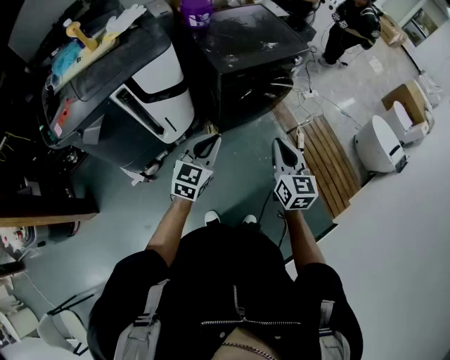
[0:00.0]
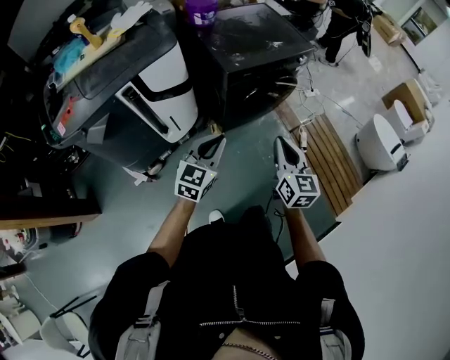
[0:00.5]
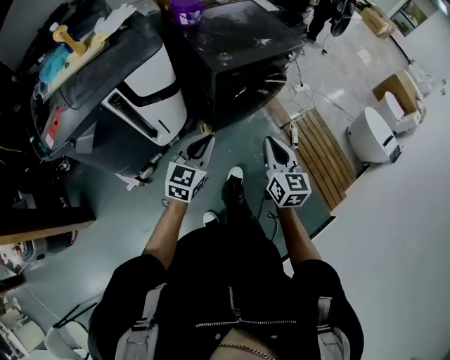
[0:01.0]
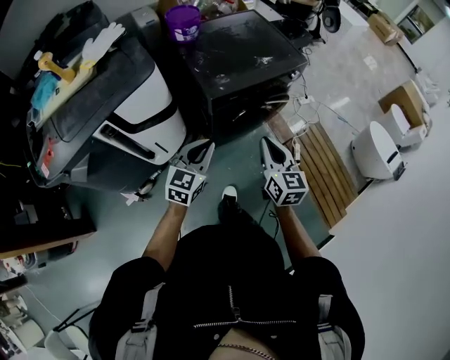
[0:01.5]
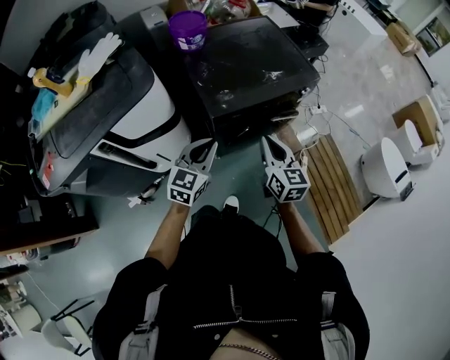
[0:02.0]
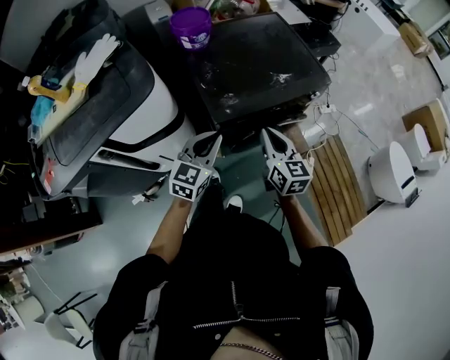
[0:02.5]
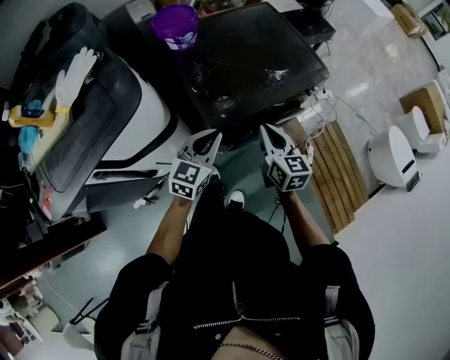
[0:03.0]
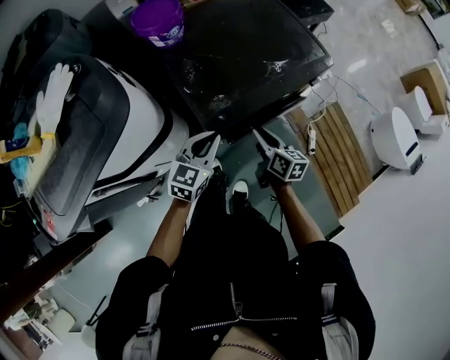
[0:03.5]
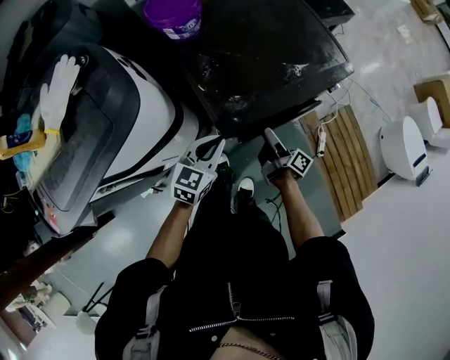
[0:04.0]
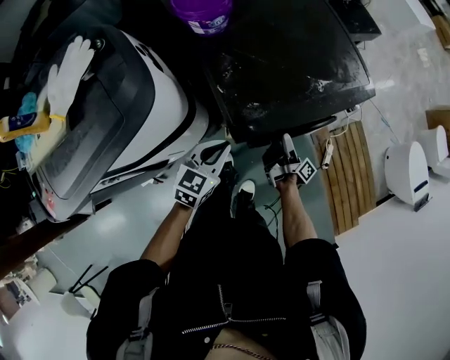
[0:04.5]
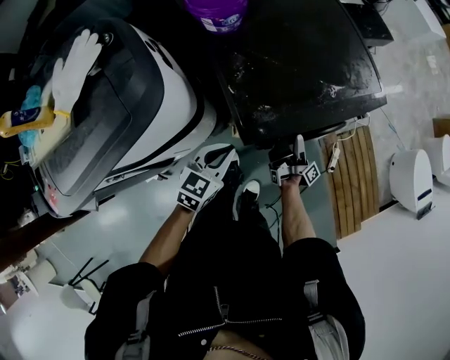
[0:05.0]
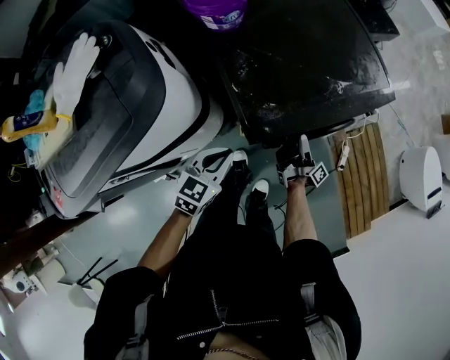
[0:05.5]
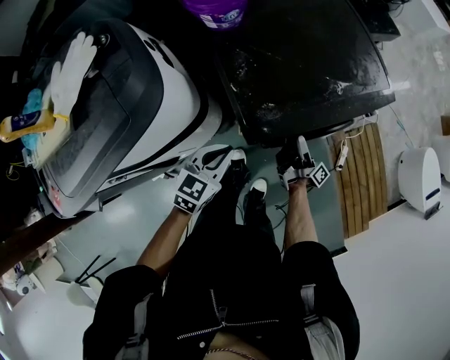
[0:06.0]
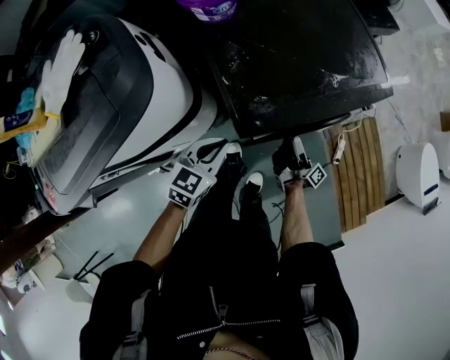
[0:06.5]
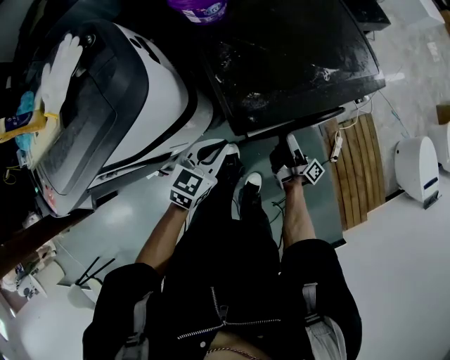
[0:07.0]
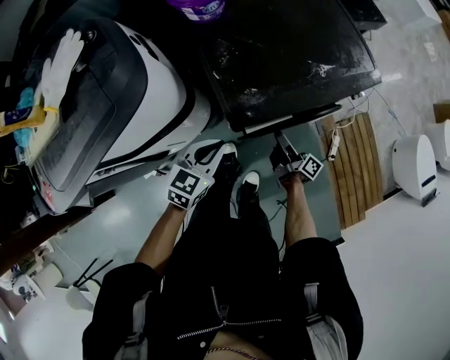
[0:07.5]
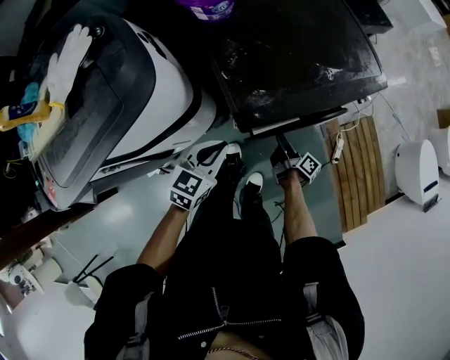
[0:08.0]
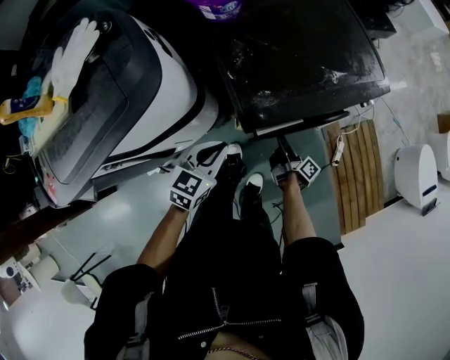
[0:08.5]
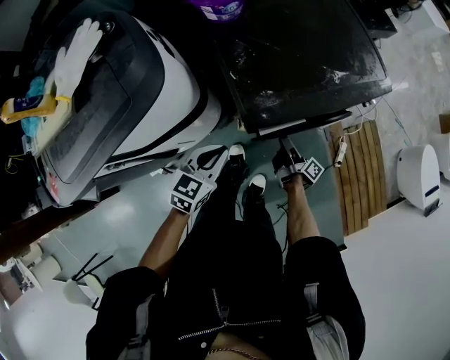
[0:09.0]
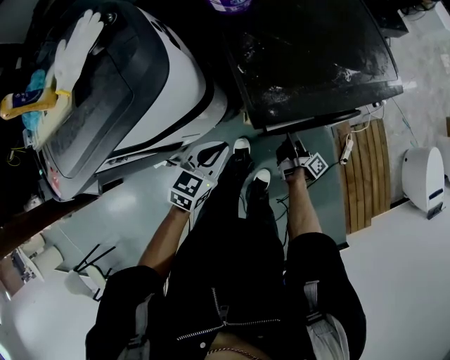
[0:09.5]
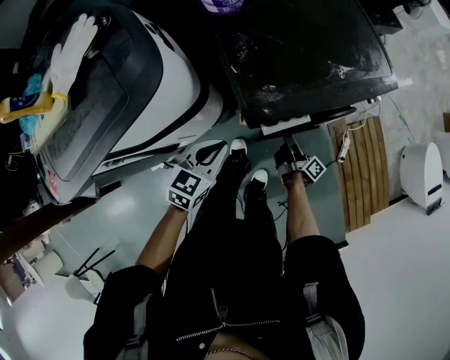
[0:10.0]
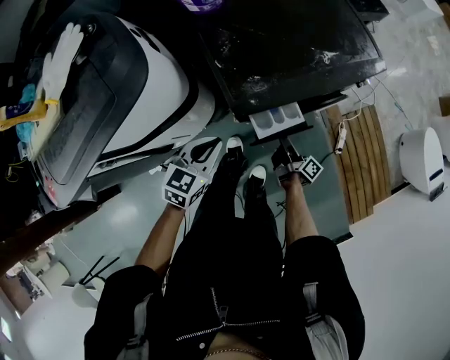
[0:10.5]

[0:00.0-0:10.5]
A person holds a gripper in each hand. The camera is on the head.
0:00.0 to 0:02.0: Both grippers travel together forward, roughly 25 cm.
0:02.0 to 0:04.0: The right gripper heads downward and forward, covering approximately 25 cm, rolls clockwise, seen from behind, by about 70 degrees, and opens its fingers; the left gripper shifts about 15 cm forward and downward.
0:04.0 to 0:06.5: The right gripper changes its angle by approximately 20 degrees.
0:06.5 to 0:08.5: The right gripper heads downward, covering approximately 5 cm, rotates some 30 degrees, and closes its fingers.
0:08.5 to 0:10.5: The grippers stay close to where they were, moving slightly.

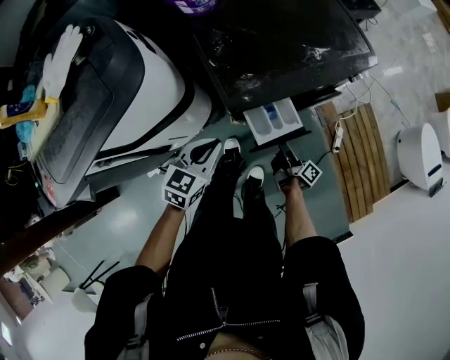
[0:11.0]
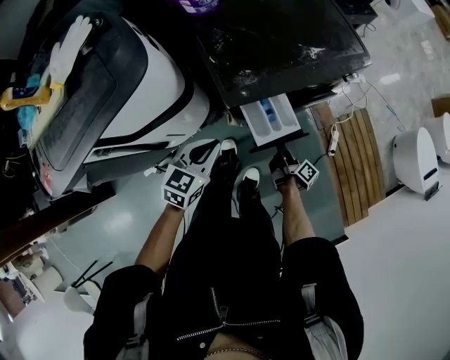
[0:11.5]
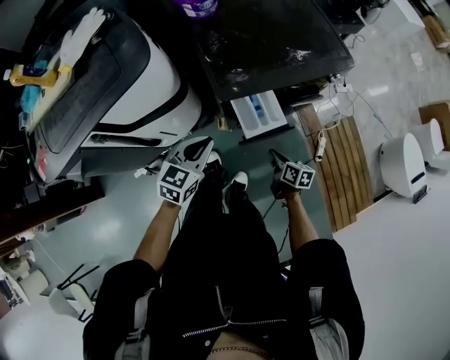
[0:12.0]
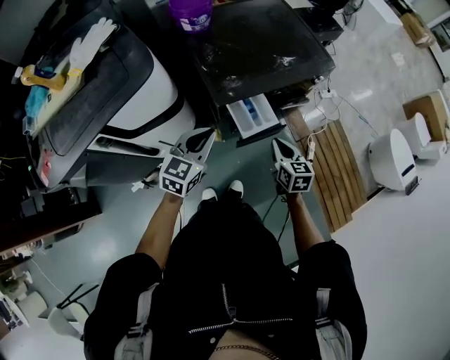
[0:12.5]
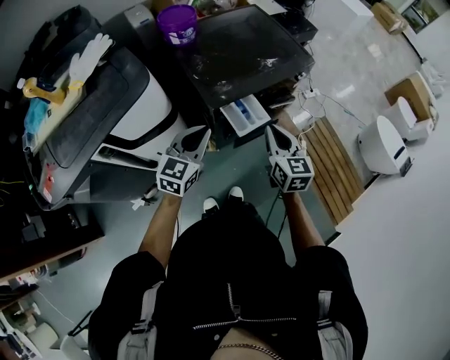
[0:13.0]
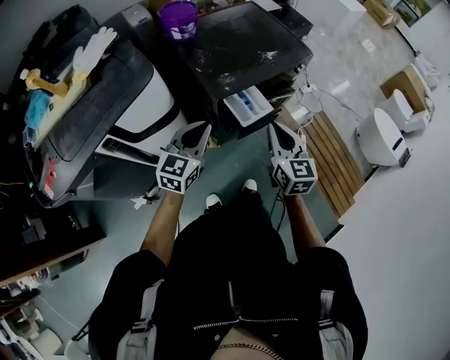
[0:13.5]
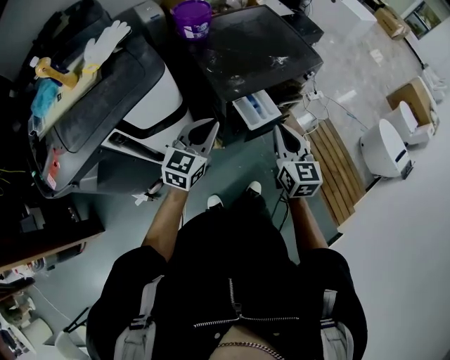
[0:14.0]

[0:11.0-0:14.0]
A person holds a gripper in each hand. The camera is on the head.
0:11.0 to 0:12.5: The left gripper travels upward by approximately 10 cm, while the right gripper goes some 20 cm upward, and rotates around the line of its fingers by about 70 degrees, counterclockwise from behind.
0:12.5 to 0:14.0: The left gripper is displaced upward by approximately 5 cm, while the right gripper moves upward, approximately 15 cm, and turns by approximately 20 degrees.

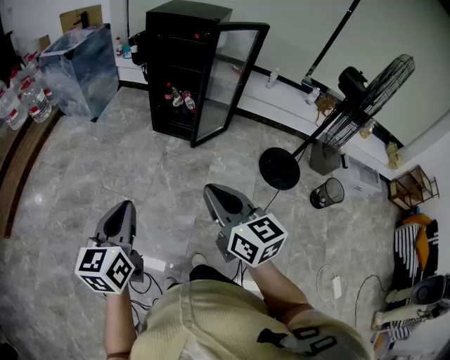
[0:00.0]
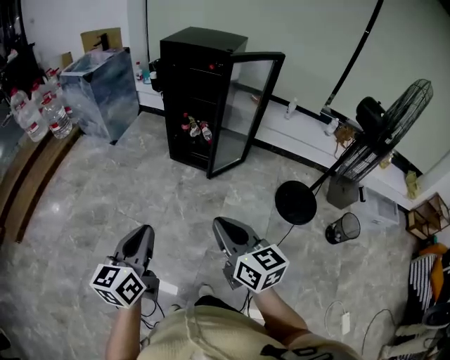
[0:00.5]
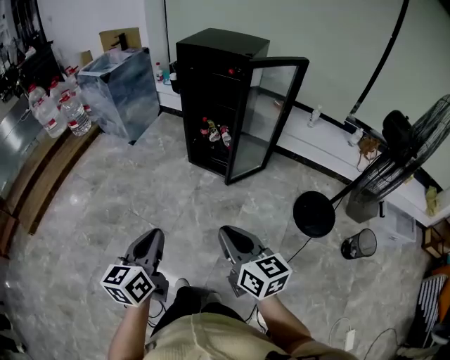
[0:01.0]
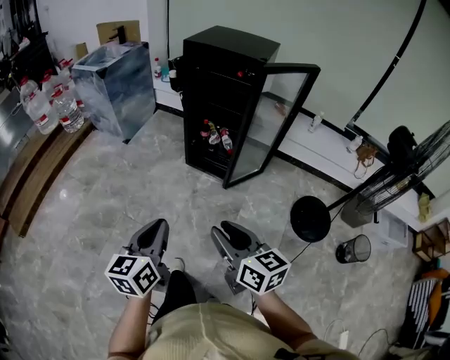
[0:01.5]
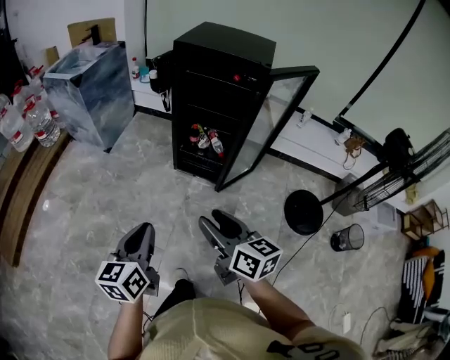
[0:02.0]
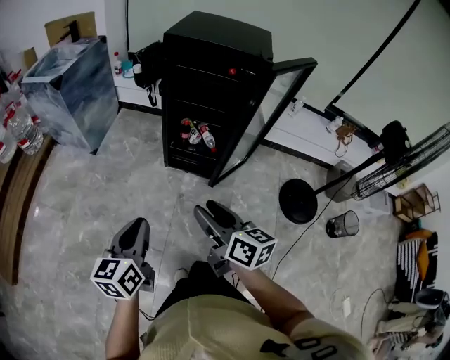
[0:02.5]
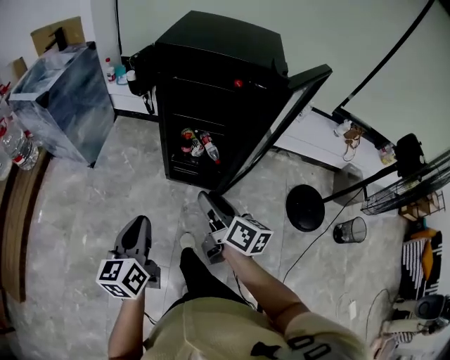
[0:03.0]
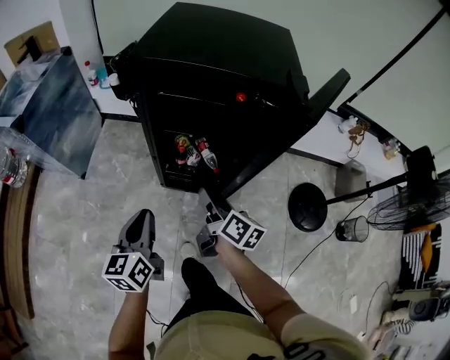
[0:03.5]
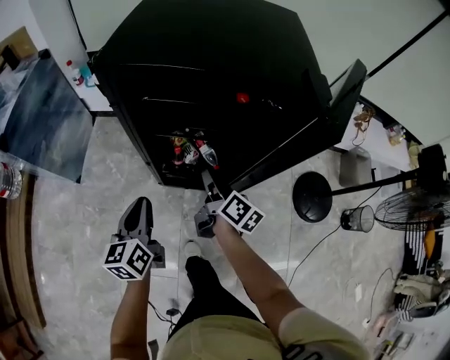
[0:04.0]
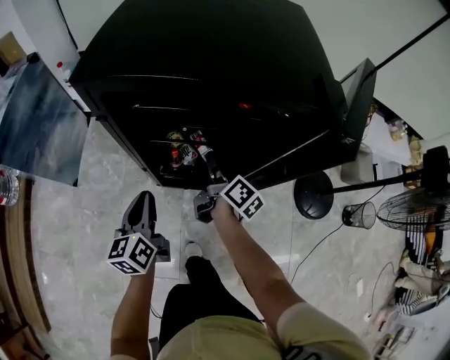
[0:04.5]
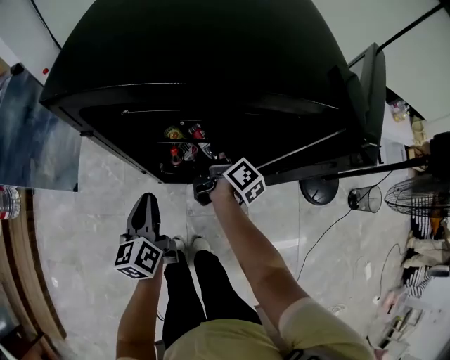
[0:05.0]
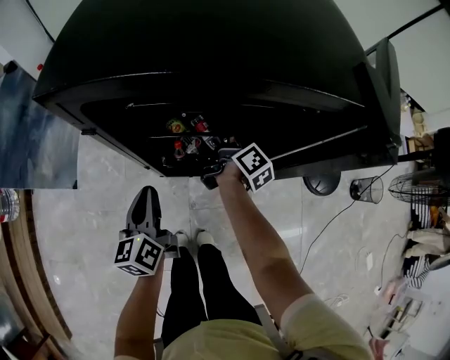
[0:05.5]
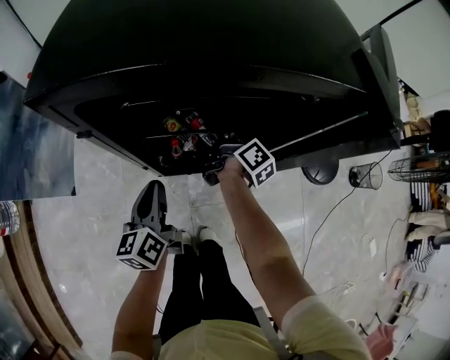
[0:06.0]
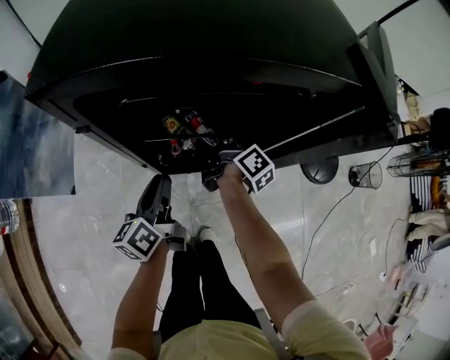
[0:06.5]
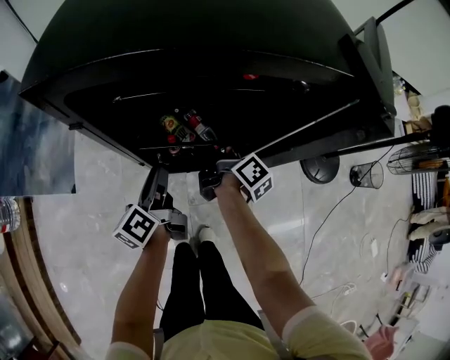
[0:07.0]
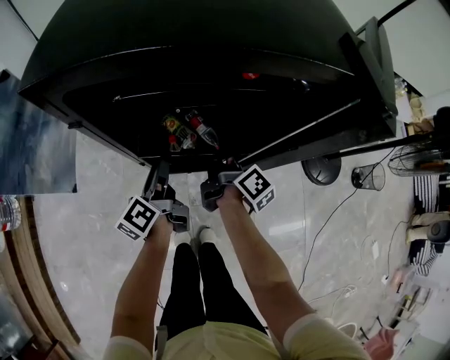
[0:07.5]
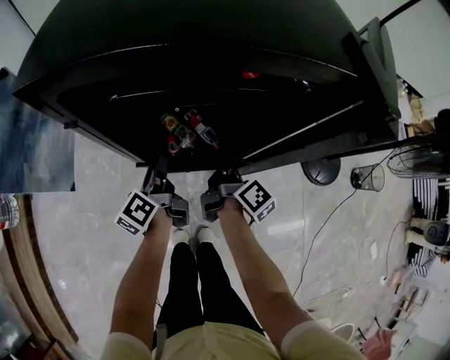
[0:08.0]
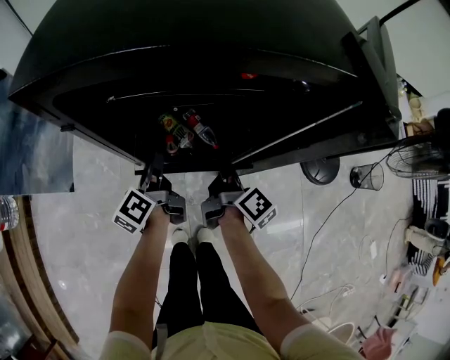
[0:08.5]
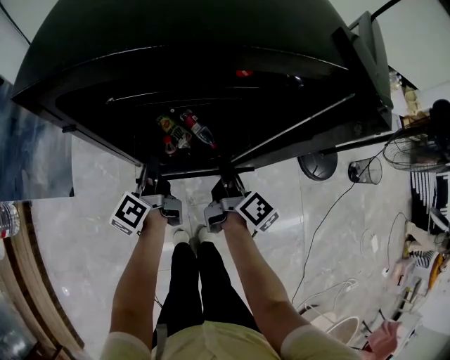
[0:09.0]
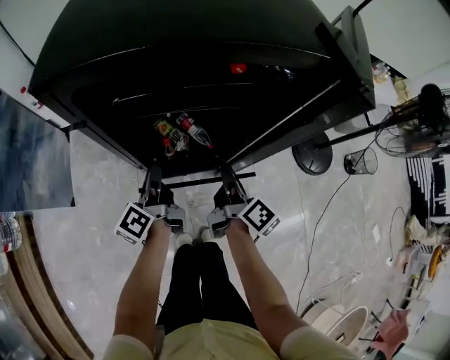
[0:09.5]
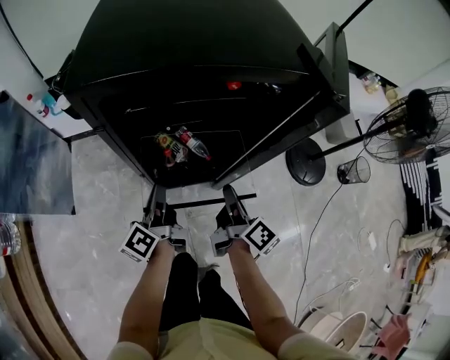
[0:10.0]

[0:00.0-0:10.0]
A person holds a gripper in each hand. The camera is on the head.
0:00.0 to 0:02.0: Both grippers travel together forward, approximately 30 cm. The right gripper opens up.
0:02.0 to 0:04.0: The pair of grippers is taken forward, about 50 cm. The right gripper rotates roughly 50 degrees.
0:04.0 to 0:06.0: The grippers both shift forward and downward by some 15 cm. The right gripper swivels roughly 30 degrees, and closes up.
0:06.0 to 0:08.0: The right gripper moves backward, roughly 10 cm, while the left gripper heads forward, covering roughly 5 cm, turns by roughly 30 degrees, and opens up.
0:08.0 to 0:10.0: The two grippers go approximately 10 cm backward and upward. The left gripper closes.

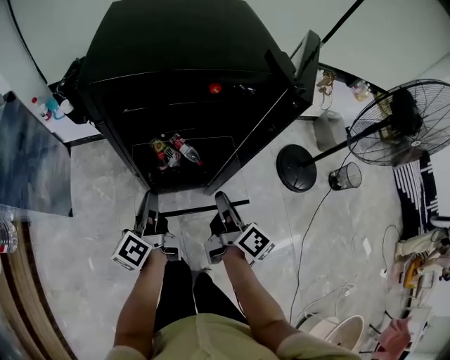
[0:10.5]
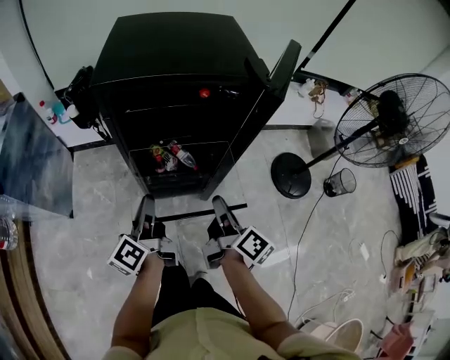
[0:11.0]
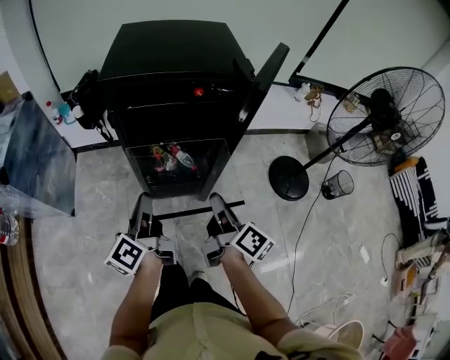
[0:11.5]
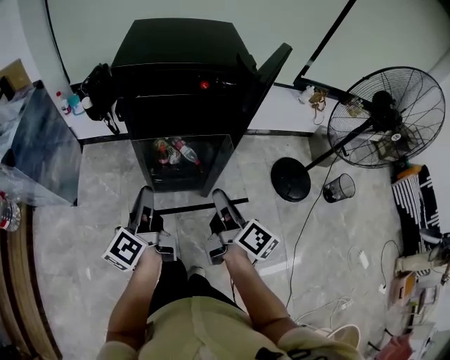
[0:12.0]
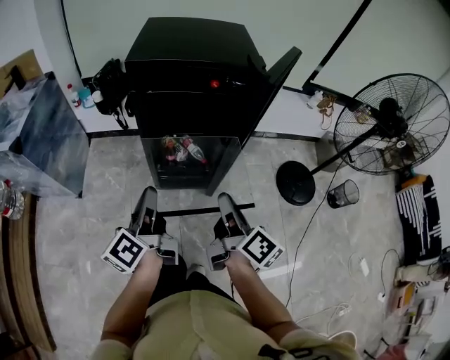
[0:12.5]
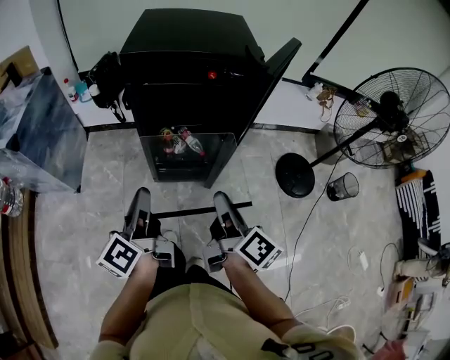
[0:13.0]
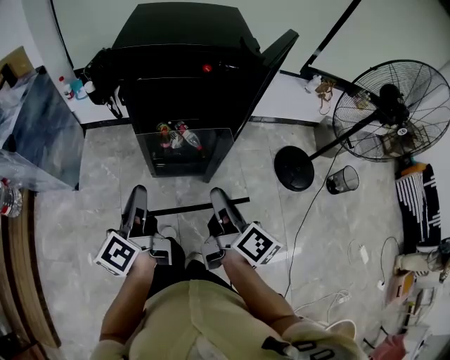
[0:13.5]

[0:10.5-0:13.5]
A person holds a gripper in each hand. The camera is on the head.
0:10.5 to 0:12.0: Both grippers travel together backward and upward, about 15 cm.
0:12.0 to 0:13.5: The grippers stay close to where they were, moving slightly.
